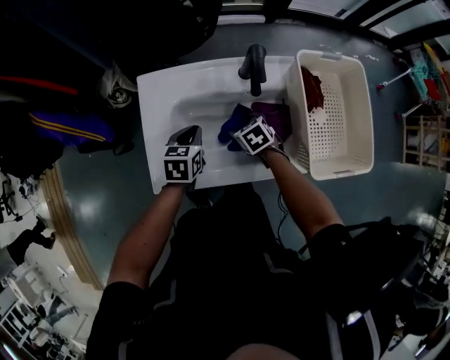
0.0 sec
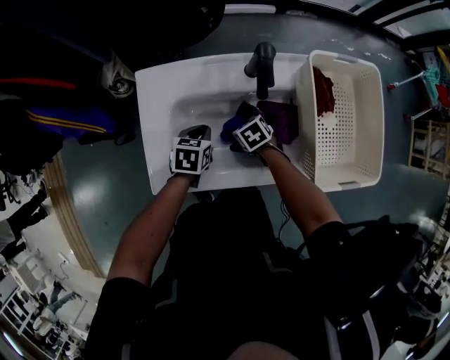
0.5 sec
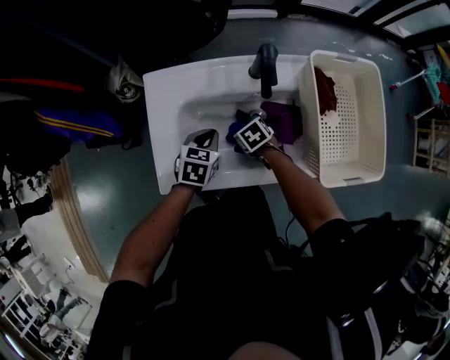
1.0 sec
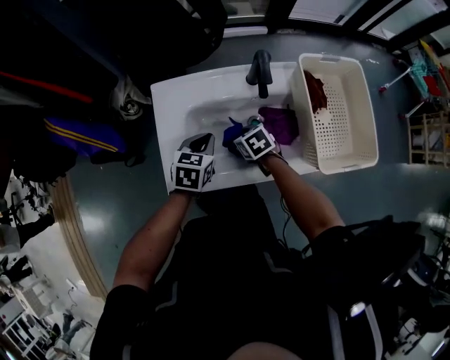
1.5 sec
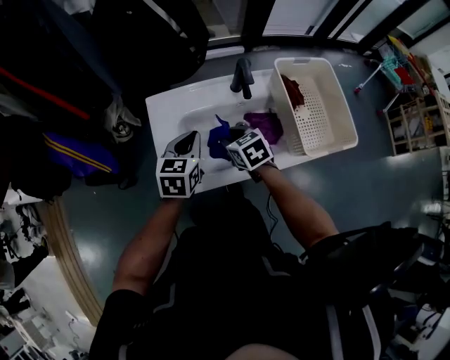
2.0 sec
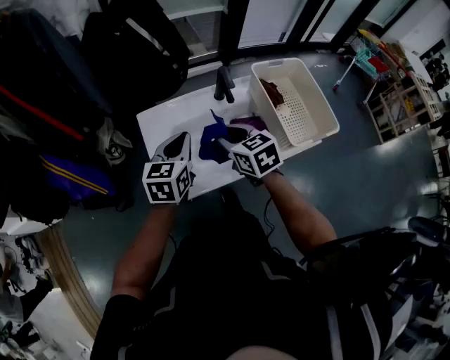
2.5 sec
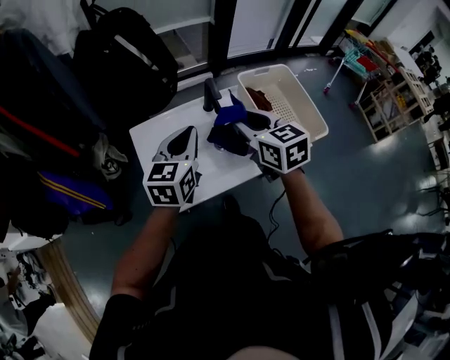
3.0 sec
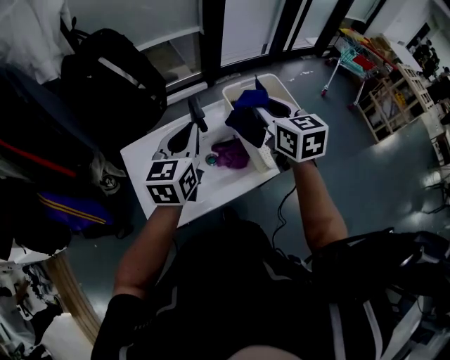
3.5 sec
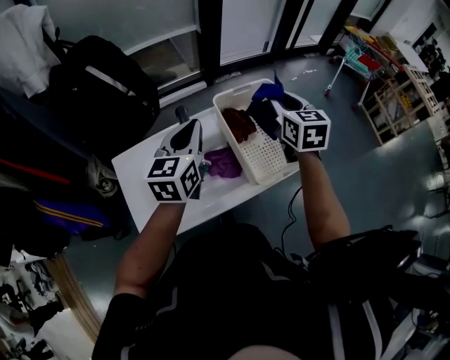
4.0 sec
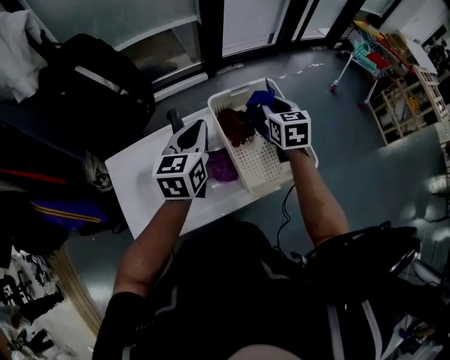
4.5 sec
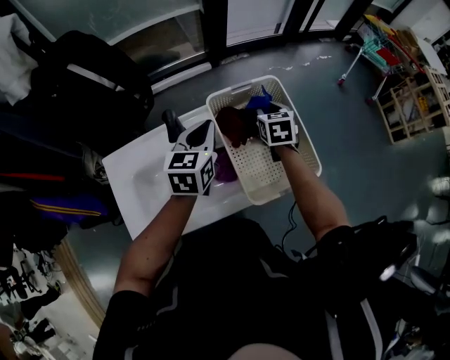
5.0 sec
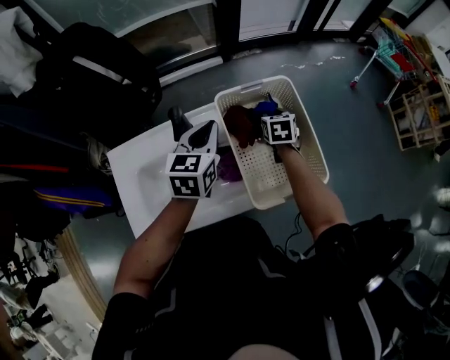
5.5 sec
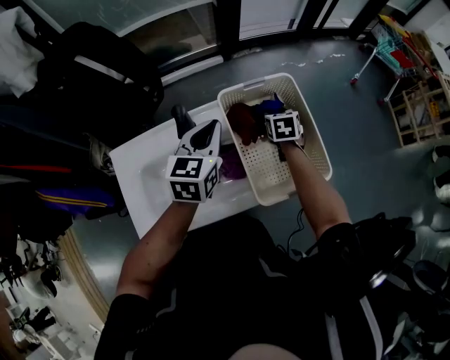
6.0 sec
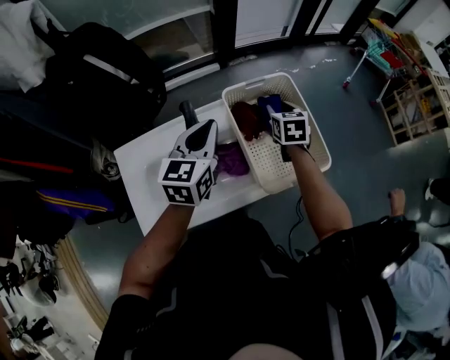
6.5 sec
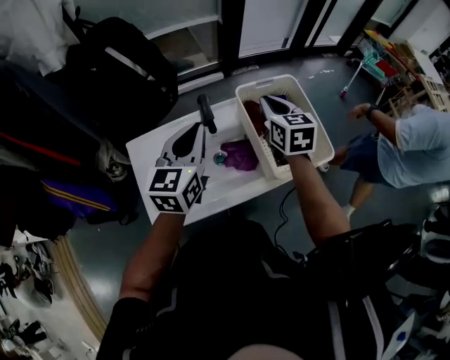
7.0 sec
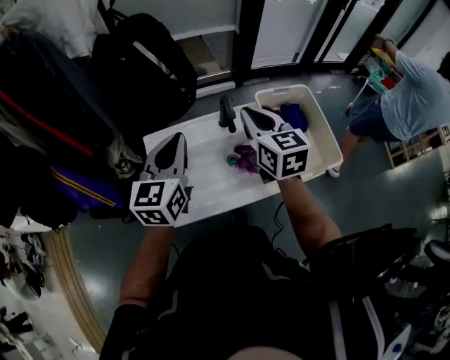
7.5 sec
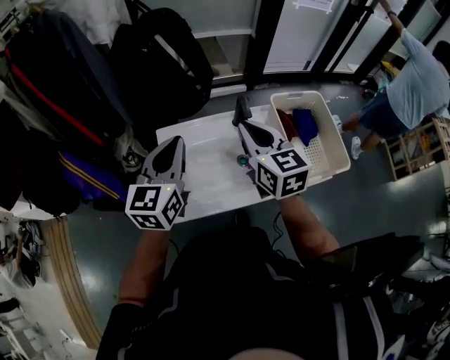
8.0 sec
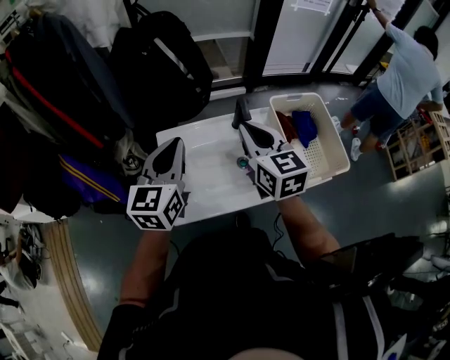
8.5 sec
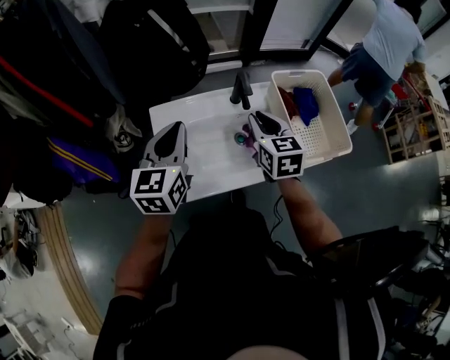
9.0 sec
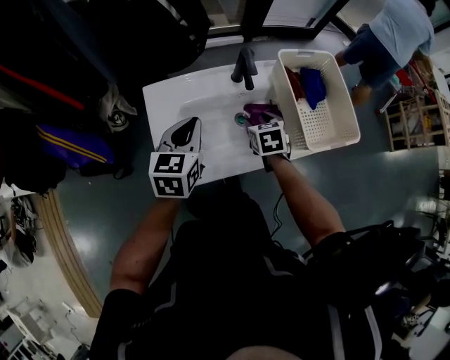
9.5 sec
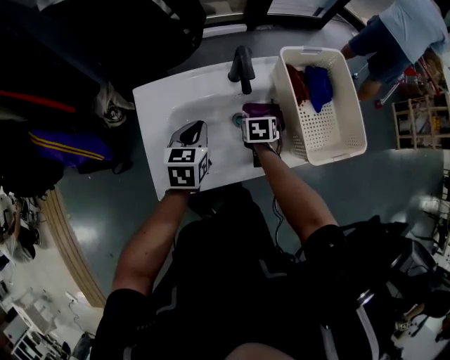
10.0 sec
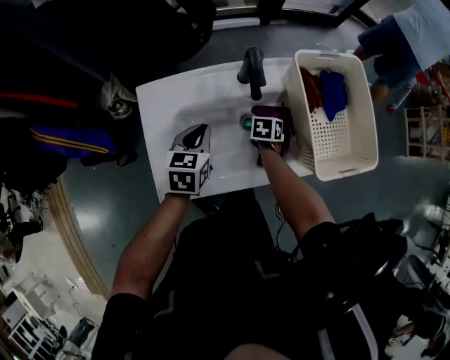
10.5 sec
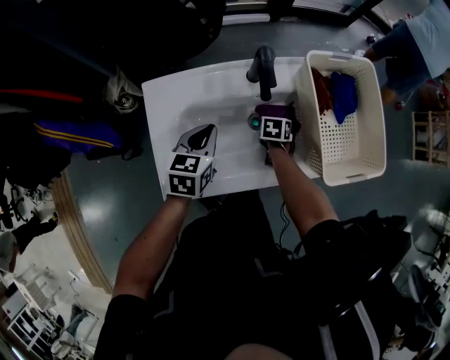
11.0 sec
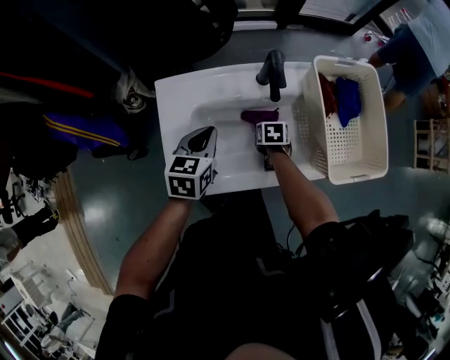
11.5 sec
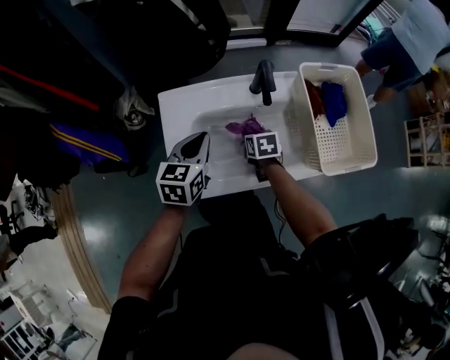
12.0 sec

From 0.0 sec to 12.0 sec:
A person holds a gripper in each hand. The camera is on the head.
From 0.0 sec to 2.0 sec: The right gripper goes about 15 cm upward and to the left, rotates some 20 degrees, and closes its fingers; the left gripper heads upward, covering approximately 10 cm.
From 2.0 sec to 4.0 sec: The left gripper moves to the right, upward and forward, approximately 25 cm; the right gripper goes some 40 cm to the right and upward, and swivels approximately 40 degrees.
From 4.0 sec to 6.0 sec: The left gripper heads downward and forward, covering some 10 cm; the right gripper moves downward, roughly 25 cm, and turns by approximately 30 degrees.
From 6.0 sec to 8.0 sec: The right gripper heads to the left, upward and backward, covering about 50 cm, tips its fingers upward by some 40 degrees, and closes up. Meanwhile the left gripper goes about 35 cm to the left, backward and upward.
From 8.0 sec to 10.0 sec: The right gripper shifts roughly 35 cm downward, tilts its fingers roughly 50 degrees downward, and opens up. Meanwhile the left gripper moves downward, some 25 cm, and rotates some 30 degrees.
From 10.0 sec to 12.0 sec: The right gripper travels downward and back again, approximately 10 cm each way, and closes. The left gripper moves about 5 cm.

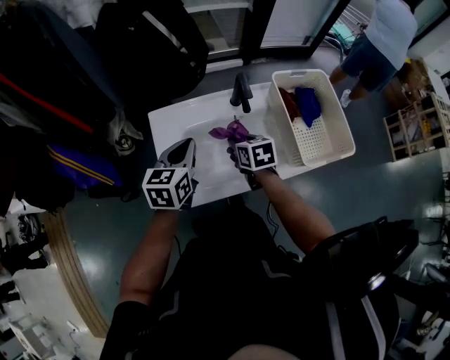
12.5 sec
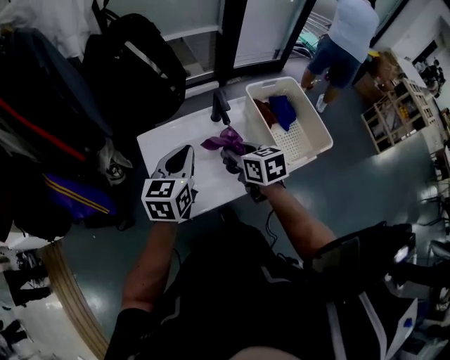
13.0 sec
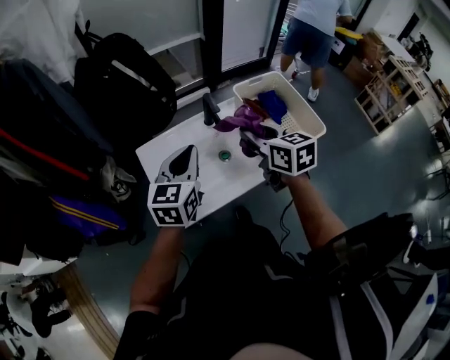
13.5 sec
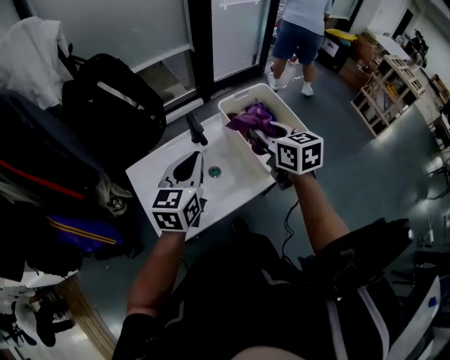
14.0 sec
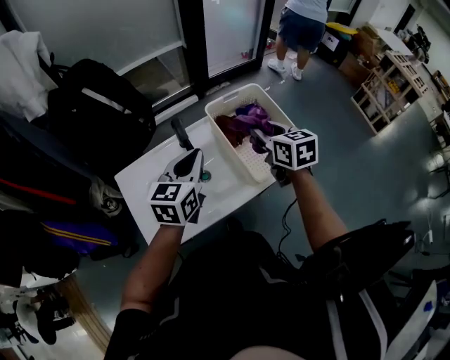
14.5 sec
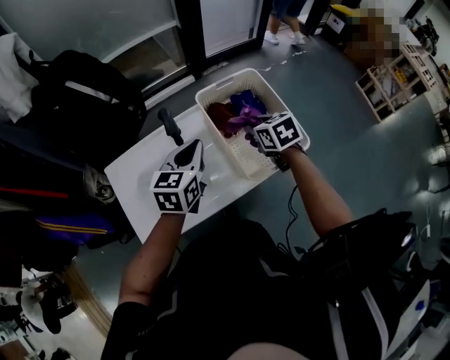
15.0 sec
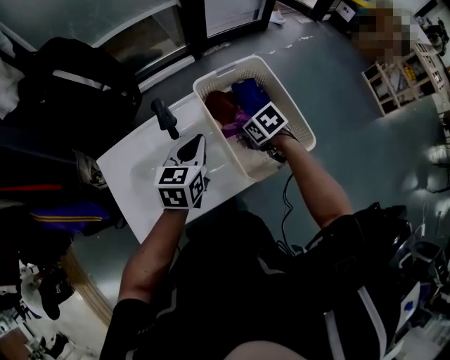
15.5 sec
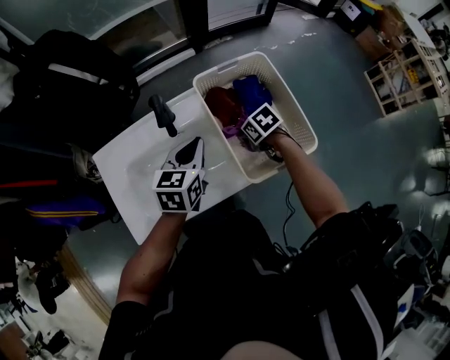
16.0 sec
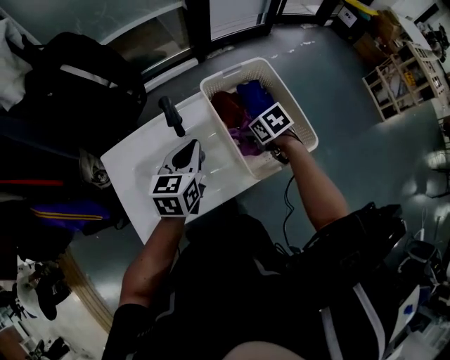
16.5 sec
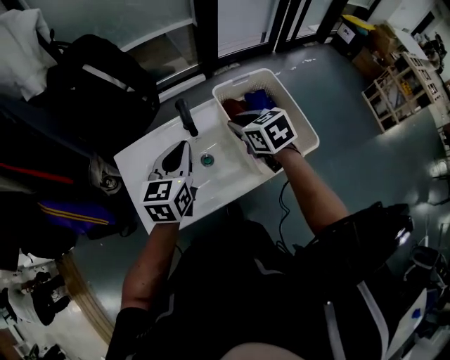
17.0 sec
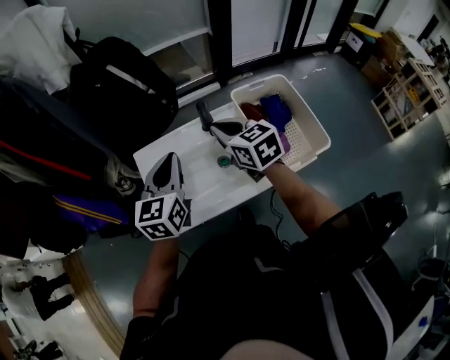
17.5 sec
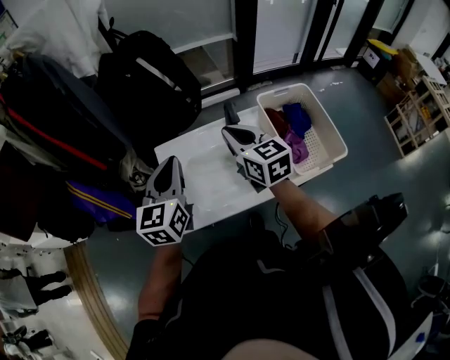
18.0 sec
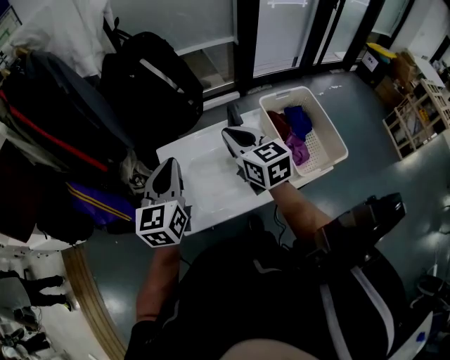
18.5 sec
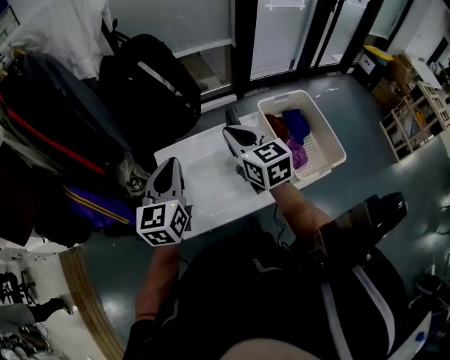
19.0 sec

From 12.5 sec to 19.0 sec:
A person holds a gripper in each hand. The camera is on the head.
From 12.5 sec to 14.5 sec: Both grippers move to the right and upward, about 25 cm. The left gripper turns by roughly 20 degrees. Meanwhile the right gripper swivels approximately 20 degrees.
From 14.5 sec to 17.0 sec: The left gripper goes downward and returns, some 10 cm each way. The right gripper reaches approximately 25 cm downward, then returns, and swivels some 30 degrees.
From 17.0 sec to 19.0 sec: The left gripper moves to the left, approximately 20 cm; the right gripper travels to the left and upward by about 20 cm, and changes its angle by some 30 degrees.

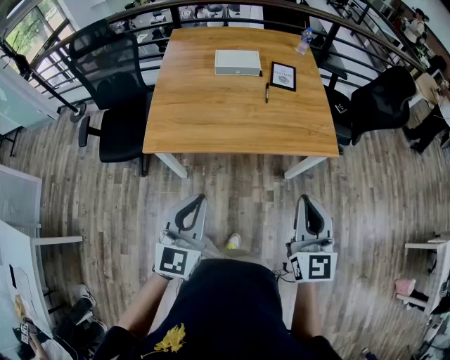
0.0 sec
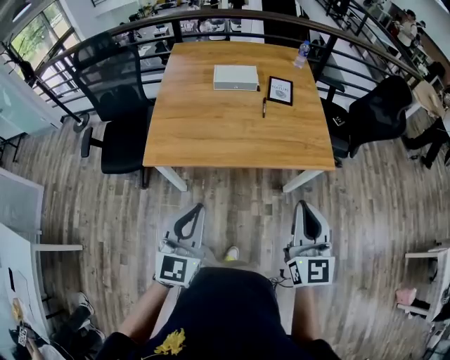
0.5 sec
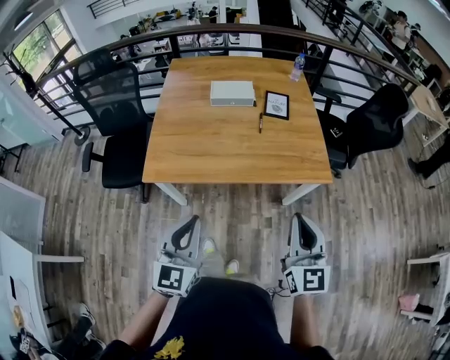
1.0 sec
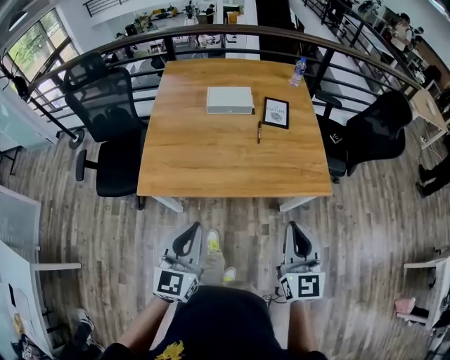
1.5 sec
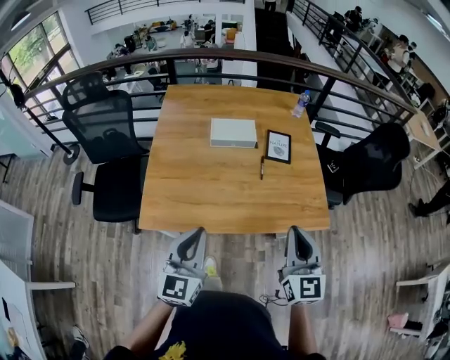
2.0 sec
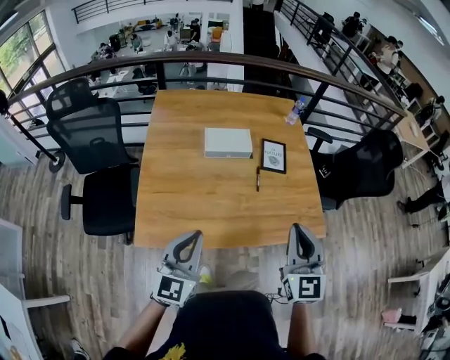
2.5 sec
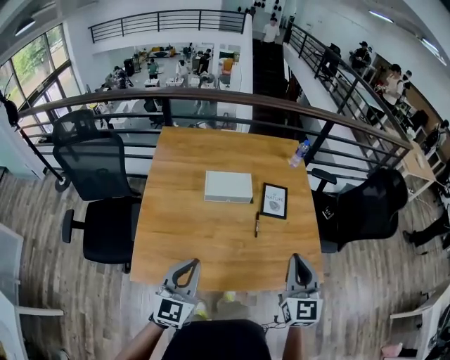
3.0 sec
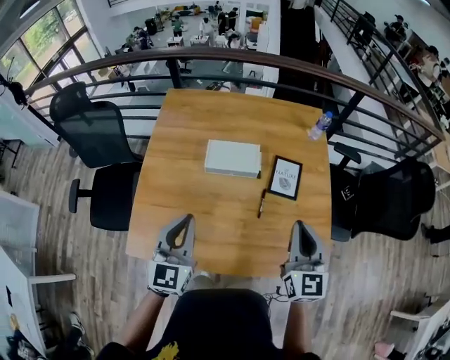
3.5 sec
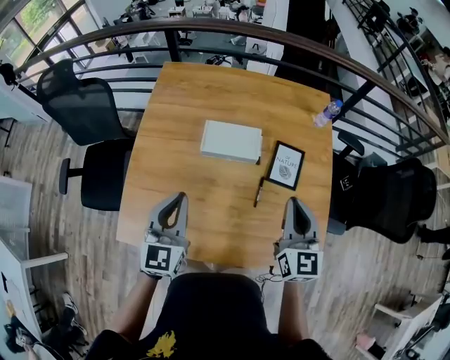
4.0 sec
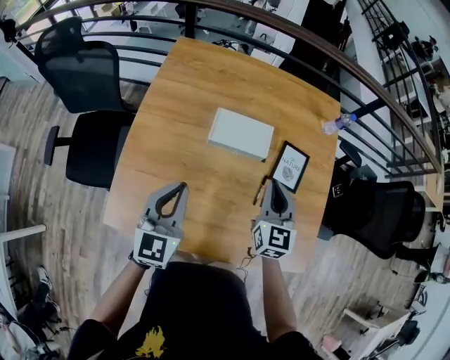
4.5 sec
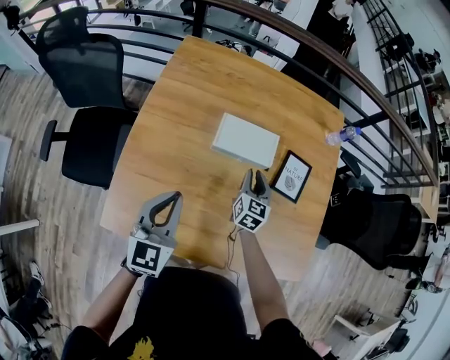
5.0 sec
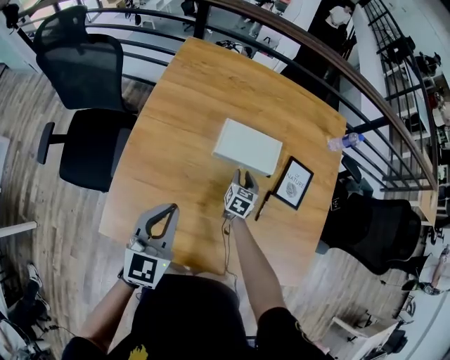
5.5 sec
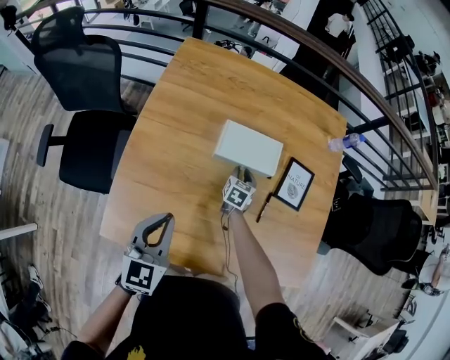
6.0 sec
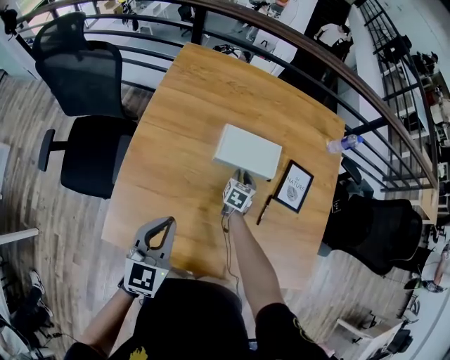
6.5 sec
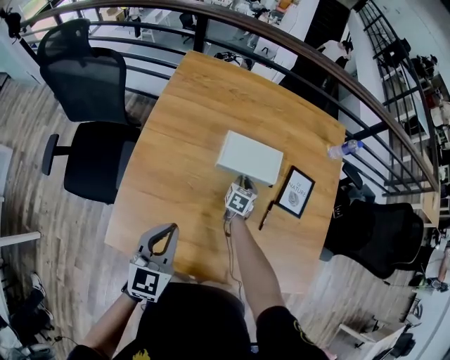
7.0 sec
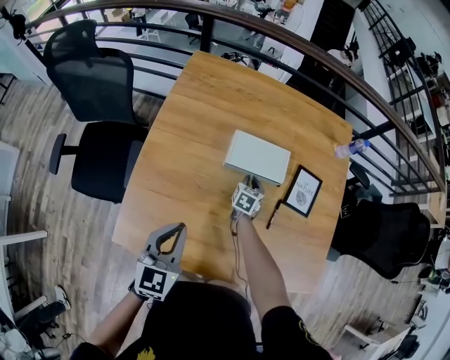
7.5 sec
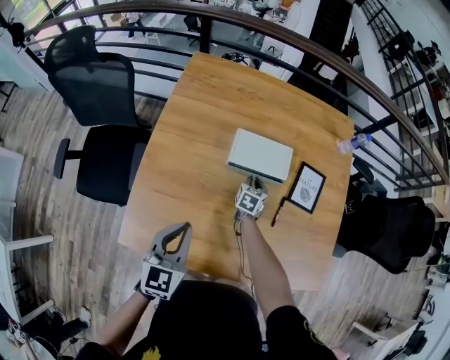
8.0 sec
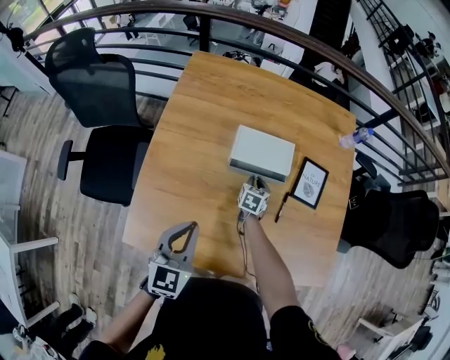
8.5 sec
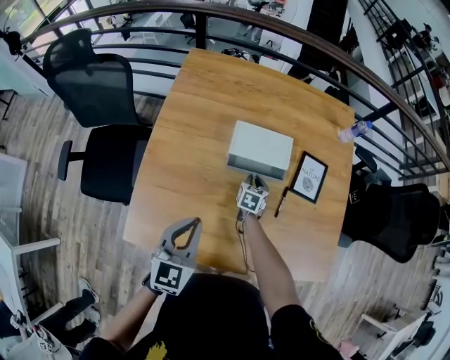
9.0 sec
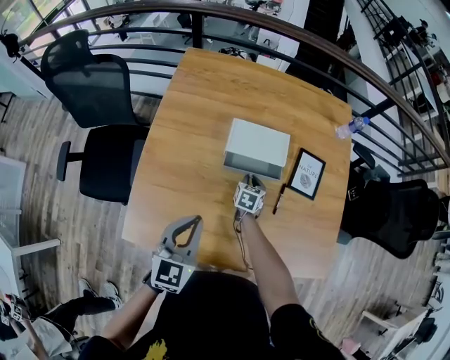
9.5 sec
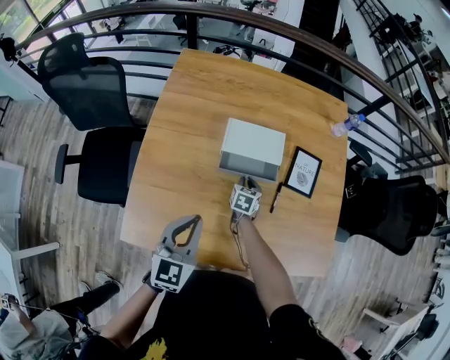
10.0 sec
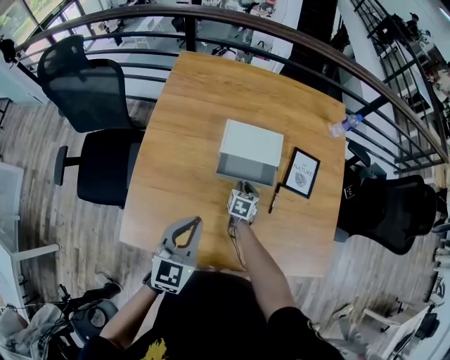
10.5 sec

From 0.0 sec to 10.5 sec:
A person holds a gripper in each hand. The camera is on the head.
From 0.0 sec to 2.0 sec: The two grippers go approximately 20 cm forward.
From 2.0 sec to 4.0 sec: The two grippers go some 35 cm forward.
From 4.0 sec to 6.5 sec: The right gripper shifts roughly 40 cm downward, to the left and forward, tilts its fingers approximately 30 degrees downward, and opens its fingers, while the left gripper goes some 15 cm to the left and downward.
From 6.5 sec to 8.5 sec: The grippers make only small movements.
From 8.5 sec to 10.5 sec: The right gripper is displaced backward by some 5 cm.
